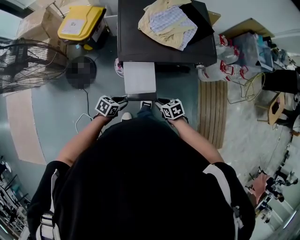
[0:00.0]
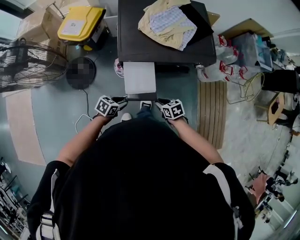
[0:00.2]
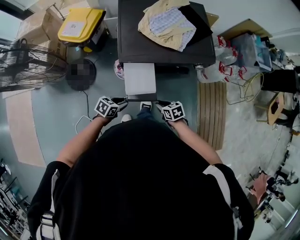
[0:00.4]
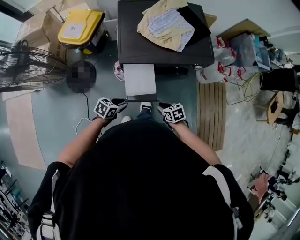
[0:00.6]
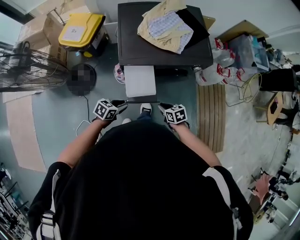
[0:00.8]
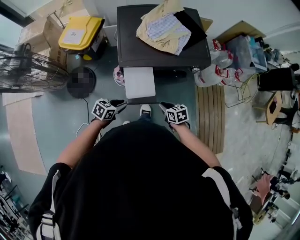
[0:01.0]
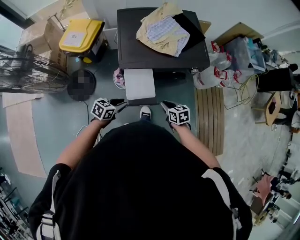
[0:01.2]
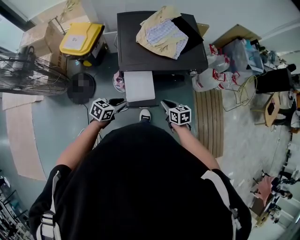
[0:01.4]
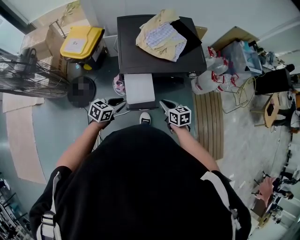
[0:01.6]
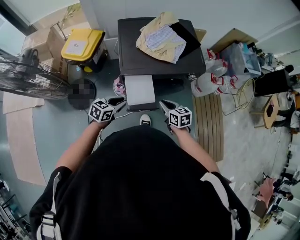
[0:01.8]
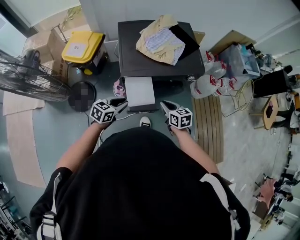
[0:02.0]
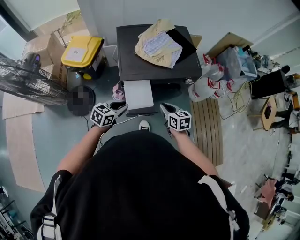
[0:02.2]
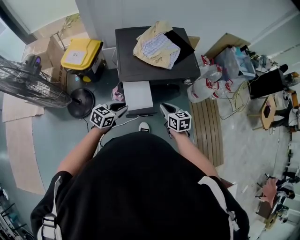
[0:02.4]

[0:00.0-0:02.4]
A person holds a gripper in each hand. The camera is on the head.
0:00.0 to 0:01.2: Both grippers travel together upward, roughly 5 cm.
0:01.2 to 0:02.4: Both grippers move upward, some 10 cm.

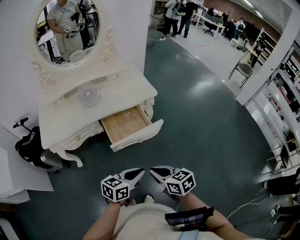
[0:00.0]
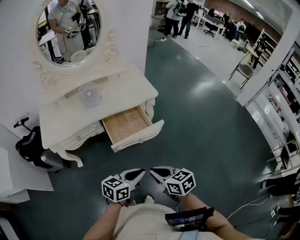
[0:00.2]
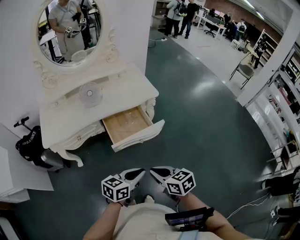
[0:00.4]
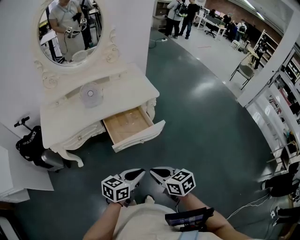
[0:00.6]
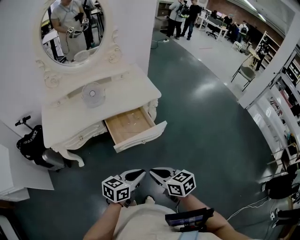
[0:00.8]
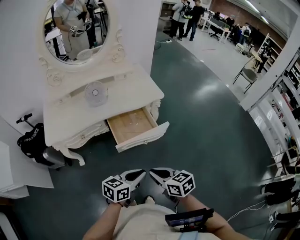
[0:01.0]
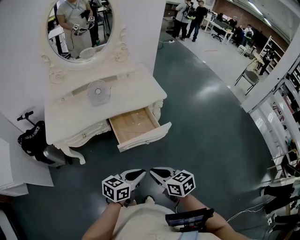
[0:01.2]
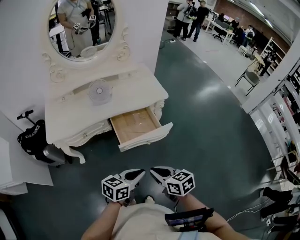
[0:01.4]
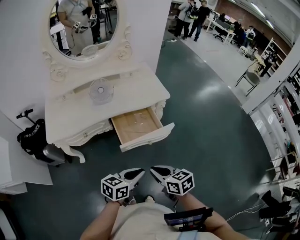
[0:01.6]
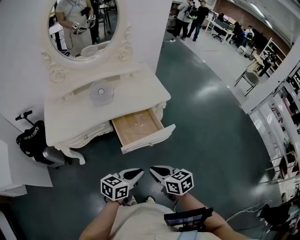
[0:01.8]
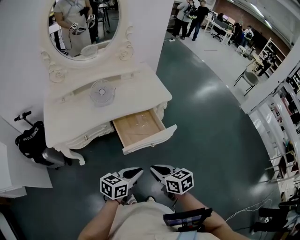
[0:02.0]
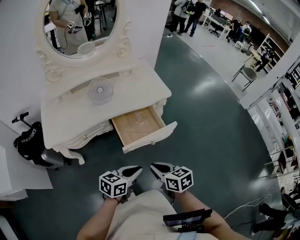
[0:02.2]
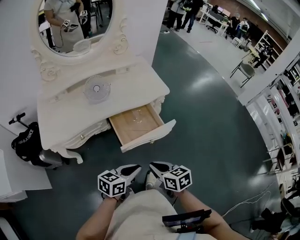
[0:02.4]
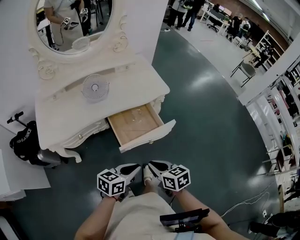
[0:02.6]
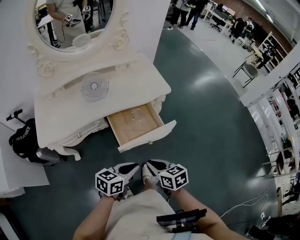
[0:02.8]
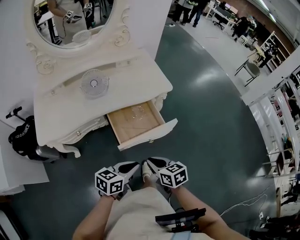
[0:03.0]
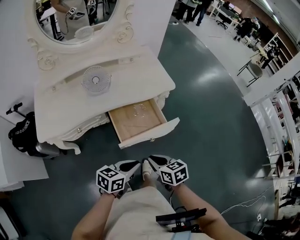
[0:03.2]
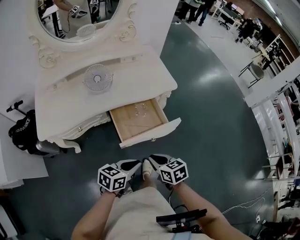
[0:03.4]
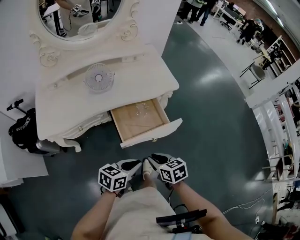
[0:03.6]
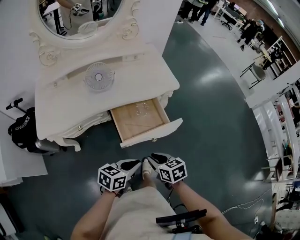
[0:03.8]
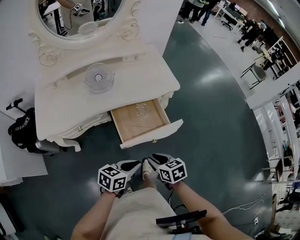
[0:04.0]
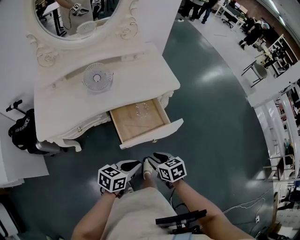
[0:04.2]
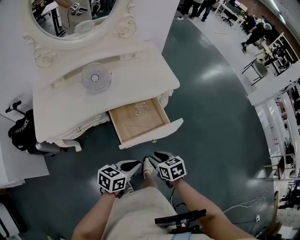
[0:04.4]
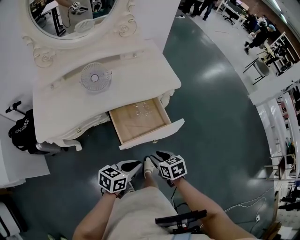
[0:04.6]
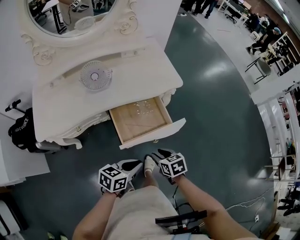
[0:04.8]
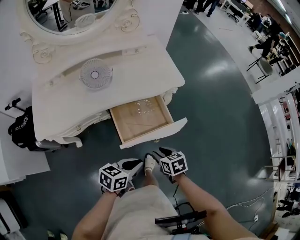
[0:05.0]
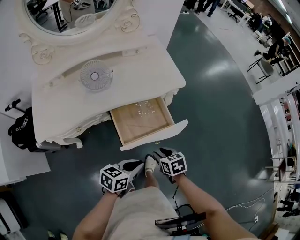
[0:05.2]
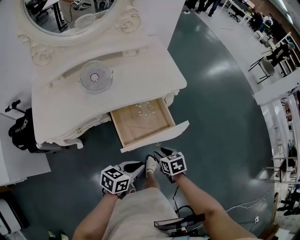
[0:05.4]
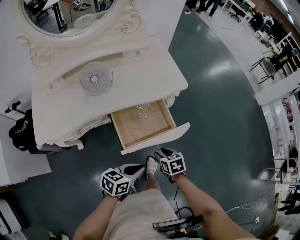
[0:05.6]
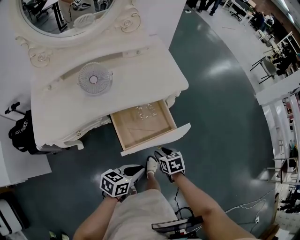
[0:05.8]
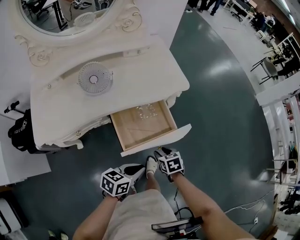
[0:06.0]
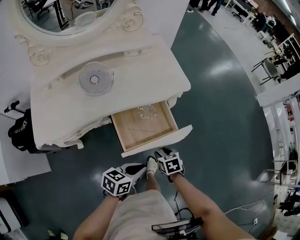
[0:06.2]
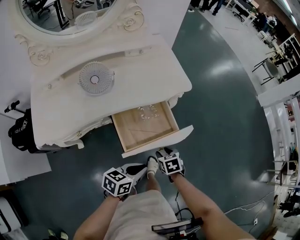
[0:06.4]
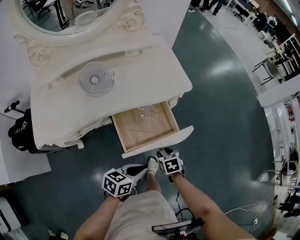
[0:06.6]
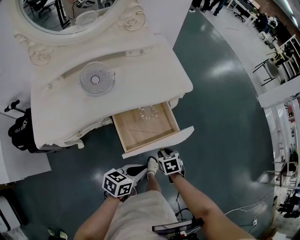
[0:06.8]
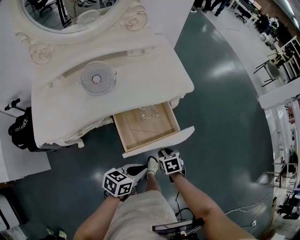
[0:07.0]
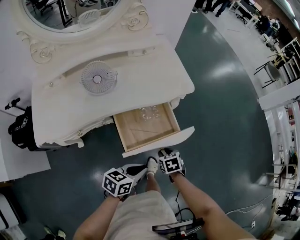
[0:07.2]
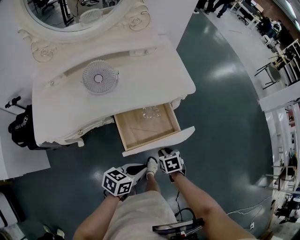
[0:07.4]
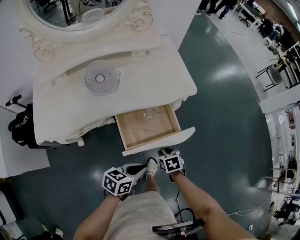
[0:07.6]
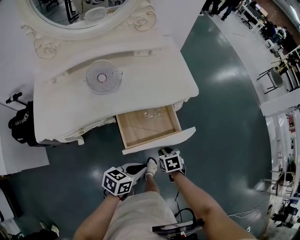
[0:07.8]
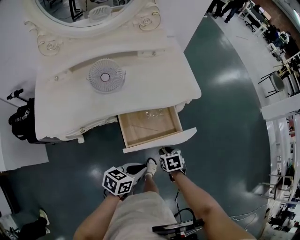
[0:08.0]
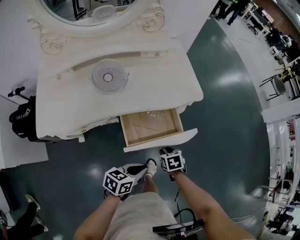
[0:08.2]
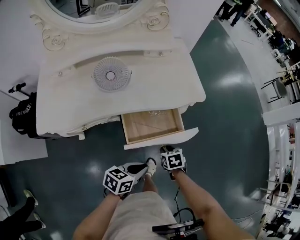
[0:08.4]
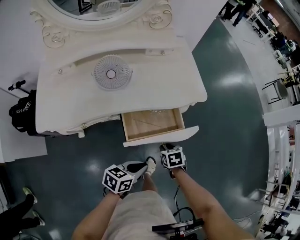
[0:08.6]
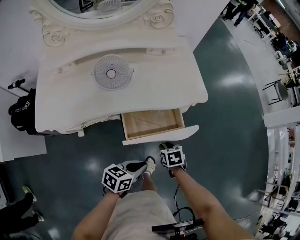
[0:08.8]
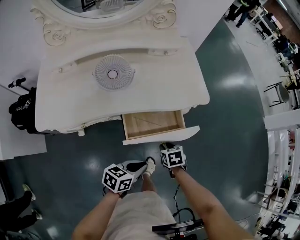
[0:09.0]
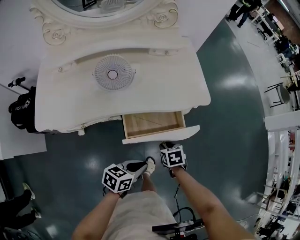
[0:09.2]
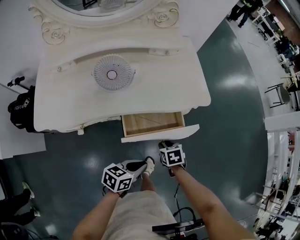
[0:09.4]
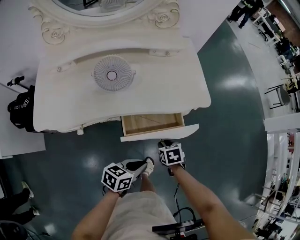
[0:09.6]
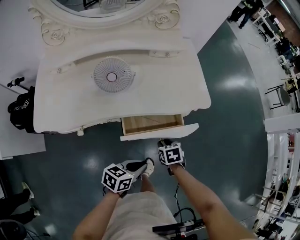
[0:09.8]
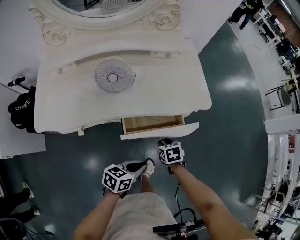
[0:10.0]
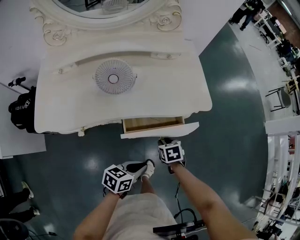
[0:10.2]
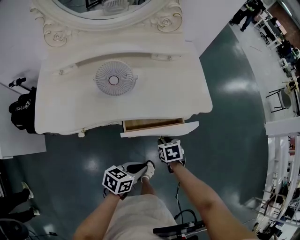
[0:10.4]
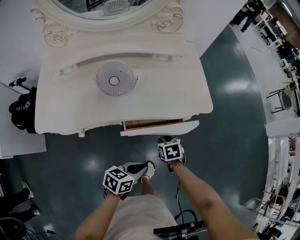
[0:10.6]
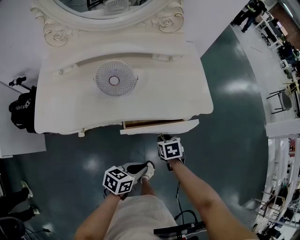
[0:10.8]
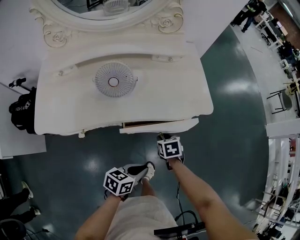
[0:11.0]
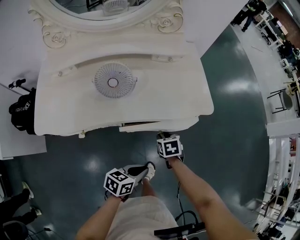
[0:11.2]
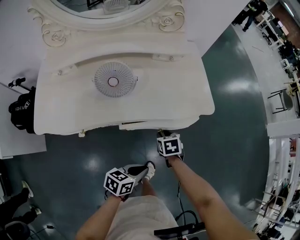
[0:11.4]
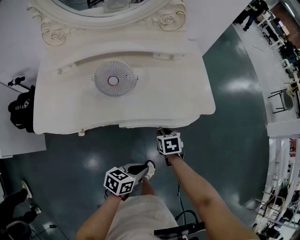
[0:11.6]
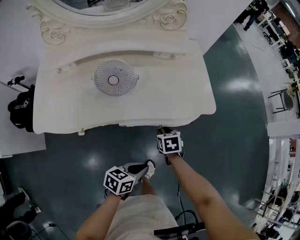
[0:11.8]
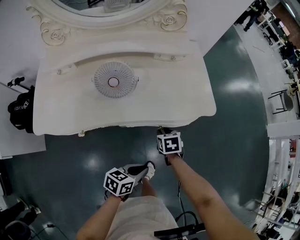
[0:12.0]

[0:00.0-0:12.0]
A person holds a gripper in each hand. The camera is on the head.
0:00.0 to 0:01.6: The left gripper is displaced to the left by roughly 5 cm. The right gripper changes place by about 5 cm.
0:01.6 to 0:03.0: The left gripper heads forward, covering roughly 5 cm; the right gripper shifts some 10 cm forward and downward.
0:03.0 to 0:04.4: The right gripper moves downward, about 5 cm, and opens.
0:04.4 to 0:06.0: The right gripper heads downward and forward, covering some 10 cm.
0:06.0 to 0:07.6: The grippers make only small movements.
0:07.6 to 0:09.0: The right gripper travels forward by roughly 5 cm.
0:09.0 to 0:10.4: The right gripper shifts some 5 cm forward.
0:10.4 to 0:12.0: The right gripper moves forward, about 5 cm.

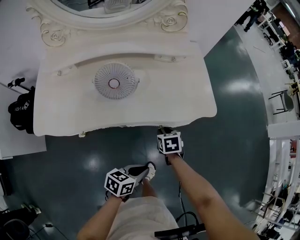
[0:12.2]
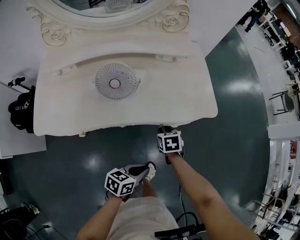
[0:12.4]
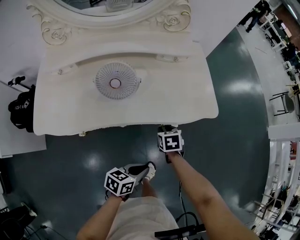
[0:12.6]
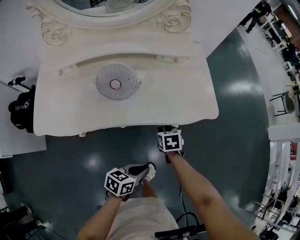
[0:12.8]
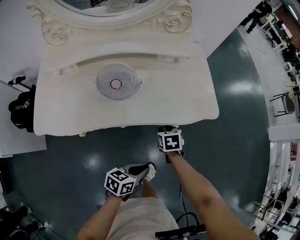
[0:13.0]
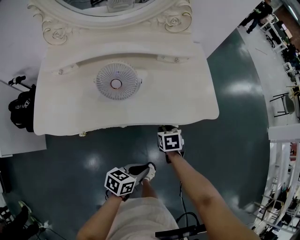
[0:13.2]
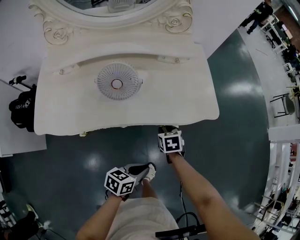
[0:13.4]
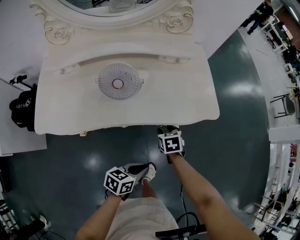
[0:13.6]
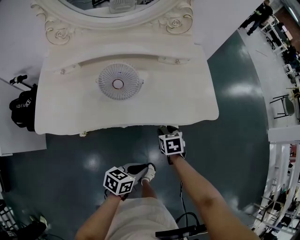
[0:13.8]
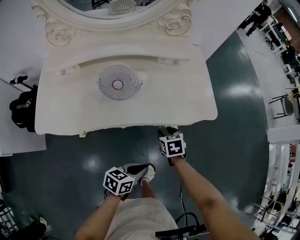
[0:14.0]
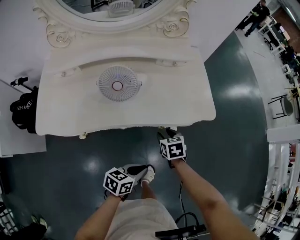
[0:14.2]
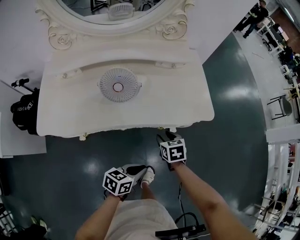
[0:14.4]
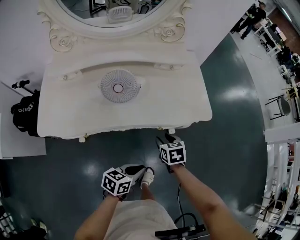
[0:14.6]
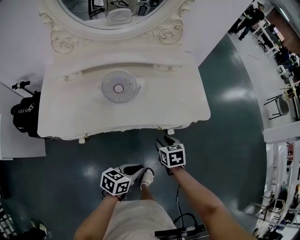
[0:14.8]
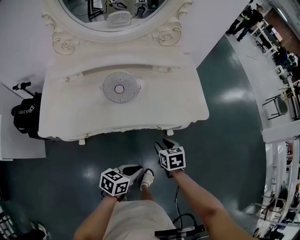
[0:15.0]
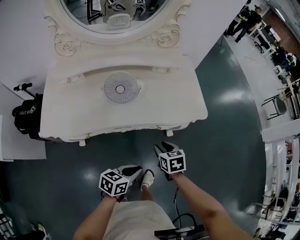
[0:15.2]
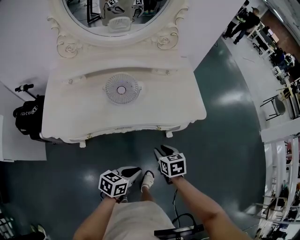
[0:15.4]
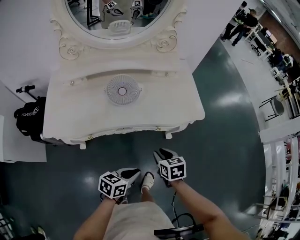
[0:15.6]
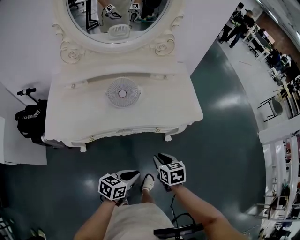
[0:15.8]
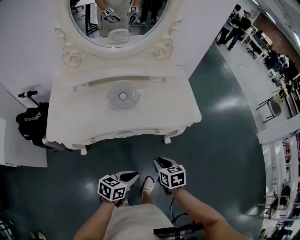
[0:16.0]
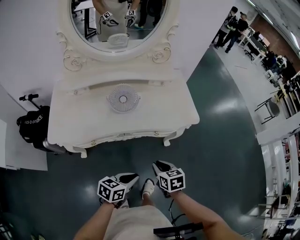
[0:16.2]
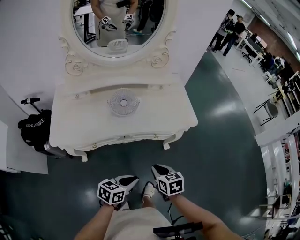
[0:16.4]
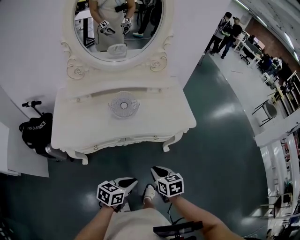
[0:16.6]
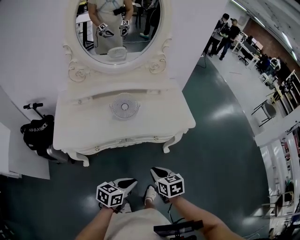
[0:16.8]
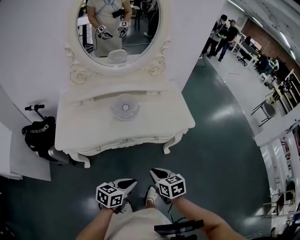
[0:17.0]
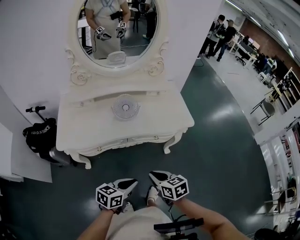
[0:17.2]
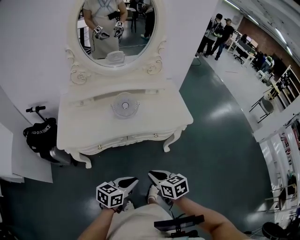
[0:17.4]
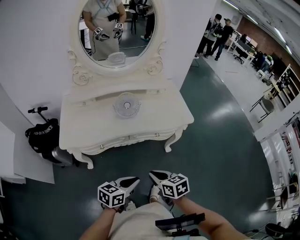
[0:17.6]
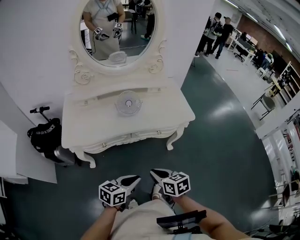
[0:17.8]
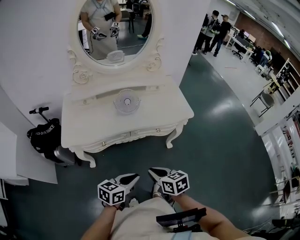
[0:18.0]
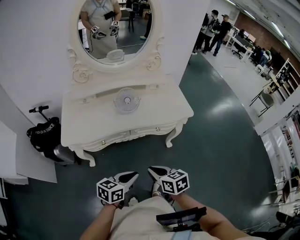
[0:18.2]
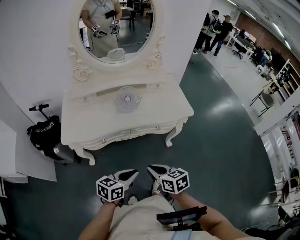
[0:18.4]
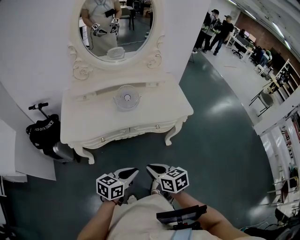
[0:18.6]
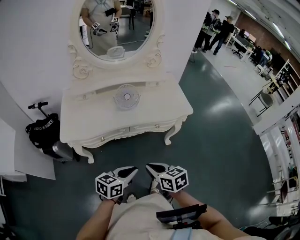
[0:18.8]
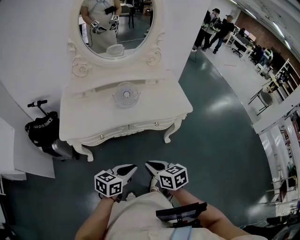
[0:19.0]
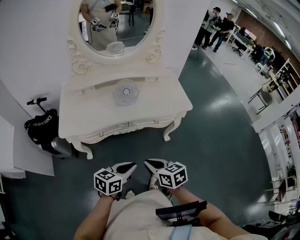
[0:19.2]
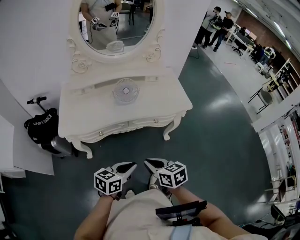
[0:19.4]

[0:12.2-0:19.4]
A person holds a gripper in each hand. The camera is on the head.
0:12.2 to 0:13.6: There are only small adjustments of the grippers.
0:13.6 to 0:15.0: The right gripper goes approximately 10 cm upward and backward.
0:15.0 to 0:16.6: The right gripper moves backward and upward, approximately 15 cm, and closes up, while the left gripper shifts about 10 cm backward and upward.
0:16.6 to 0:18.0: The right gripper goes some 10 cm backward, upward and to the left. The left gripper shifts some 10 cm backward and upward.
0:18.0 to 0:19.4: There are only small adjustments of the grippers.

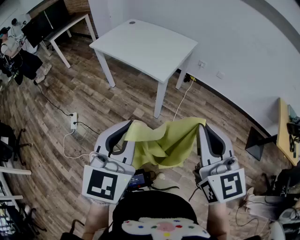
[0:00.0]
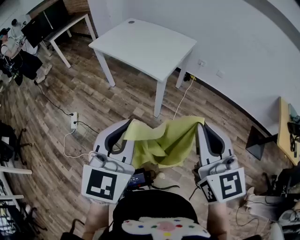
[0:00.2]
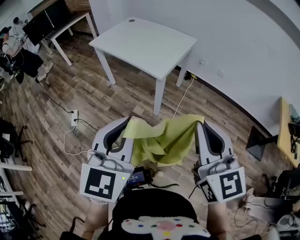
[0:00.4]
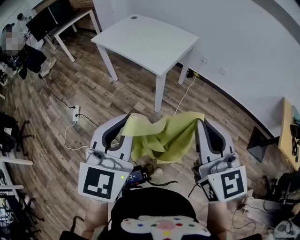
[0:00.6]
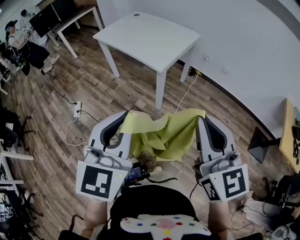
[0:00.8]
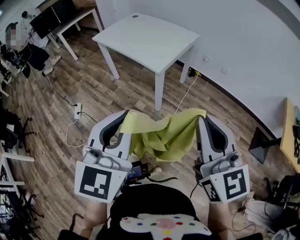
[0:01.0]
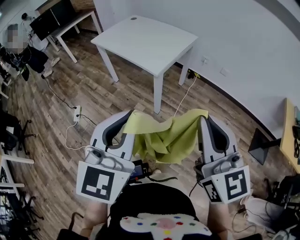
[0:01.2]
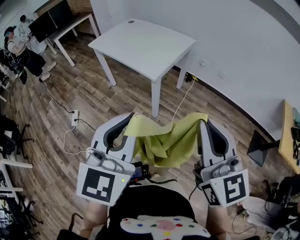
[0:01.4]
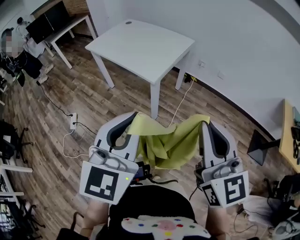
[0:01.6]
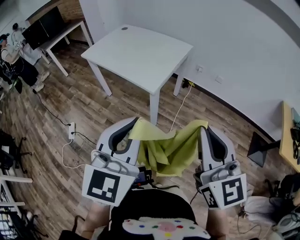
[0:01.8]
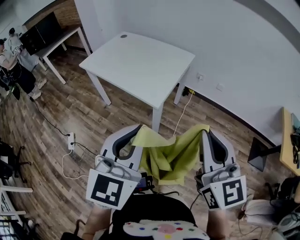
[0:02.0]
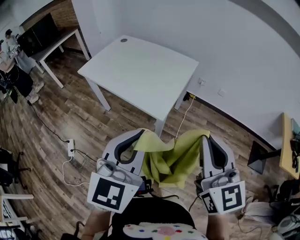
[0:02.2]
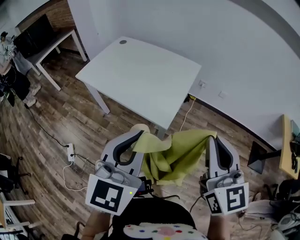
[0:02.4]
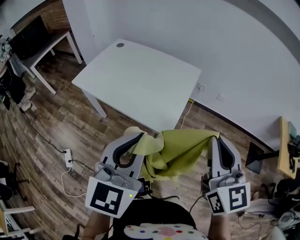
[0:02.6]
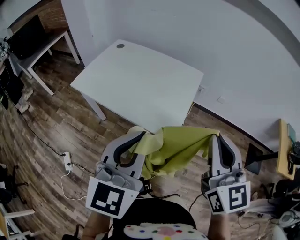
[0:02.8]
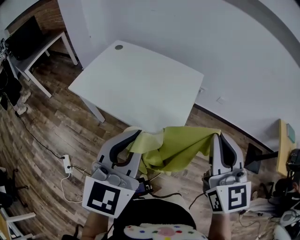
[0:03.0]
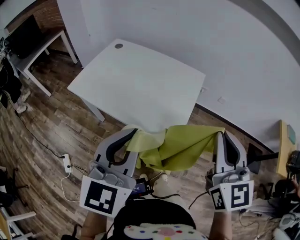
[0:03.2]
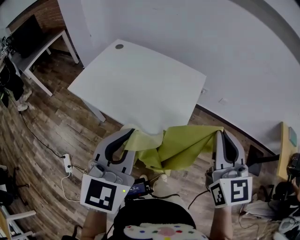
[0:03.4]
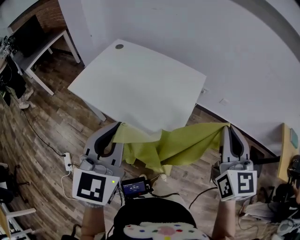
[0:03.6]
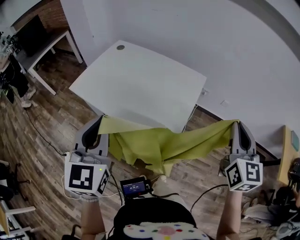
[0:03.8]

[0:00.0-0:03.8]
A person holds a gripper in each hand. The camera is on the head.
0:00.0 to 0:01.2: The two grippers go approximately 10 cm to the right.
0:01.2 to 0:02.6: The grippers both shift forward and to the left by about 30 cm.
0:02.6 to 0:03.8: The left gripper is displaced to the left and forward by approximately 15 cm. Meanwhile the right gripper travels forward and to the right by about 15 cm.
